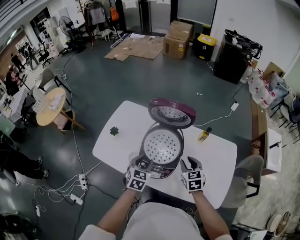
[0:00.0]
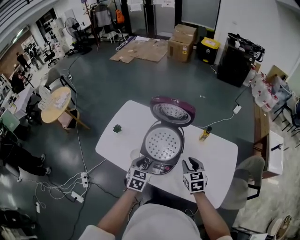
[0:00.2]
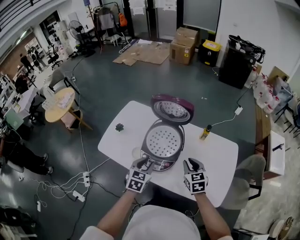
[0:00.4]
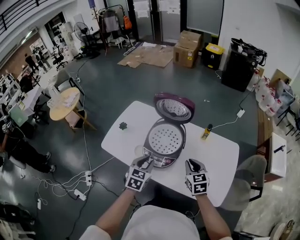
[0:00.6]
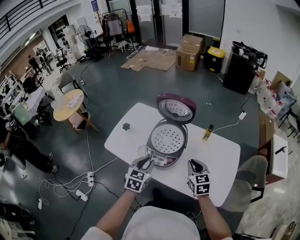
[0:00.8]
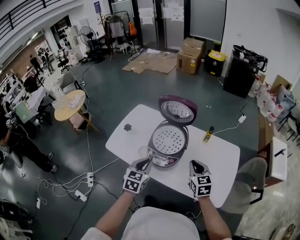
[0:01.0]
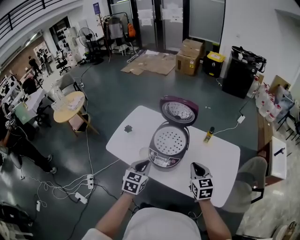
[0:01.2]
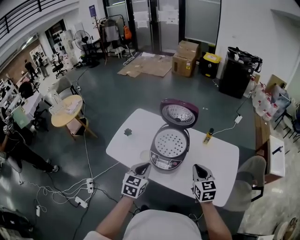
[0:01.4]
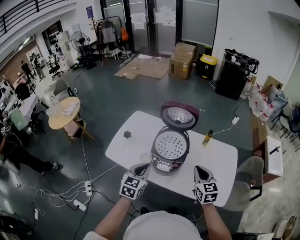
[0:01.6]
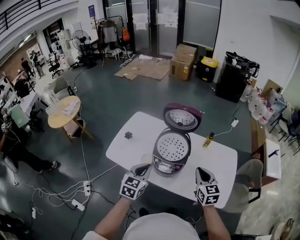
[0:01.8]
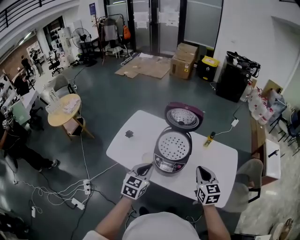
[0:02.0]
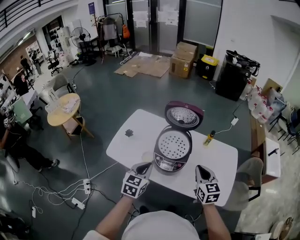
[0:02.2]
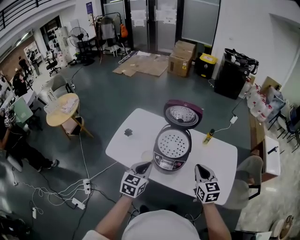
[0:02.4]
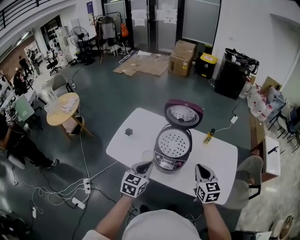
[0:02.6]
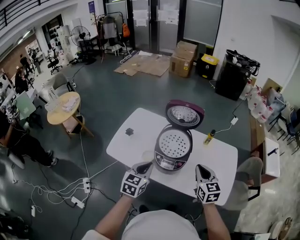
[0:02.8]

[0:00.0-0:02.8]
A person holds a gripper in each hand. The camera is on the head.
0:00.0 to 0:01.4: Both grippers move backward and upward, approximately 15 cm. The left gripper closes up, while the right gripper closes.
0:01.4 to 0:02.8: The grippers move only a little.

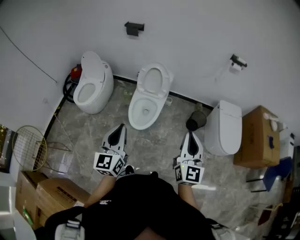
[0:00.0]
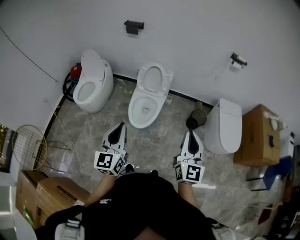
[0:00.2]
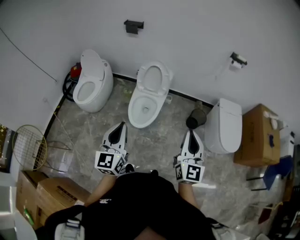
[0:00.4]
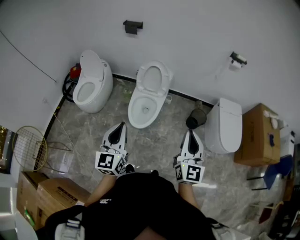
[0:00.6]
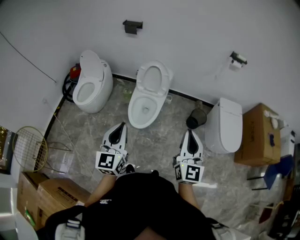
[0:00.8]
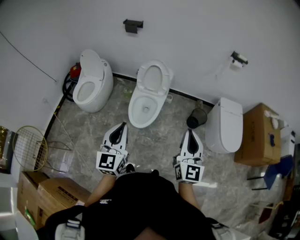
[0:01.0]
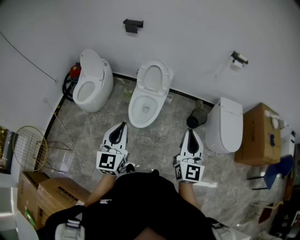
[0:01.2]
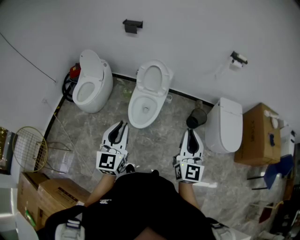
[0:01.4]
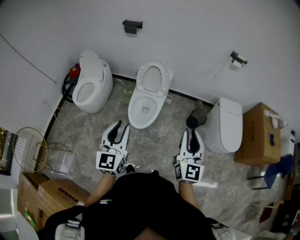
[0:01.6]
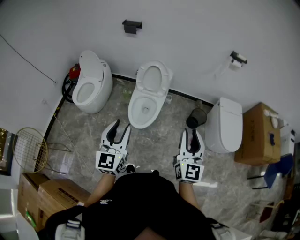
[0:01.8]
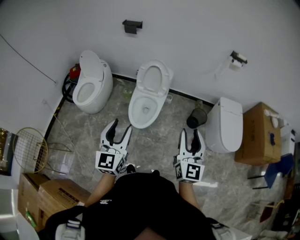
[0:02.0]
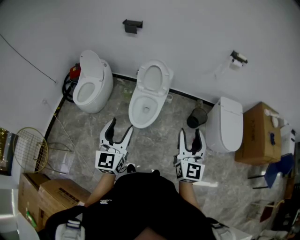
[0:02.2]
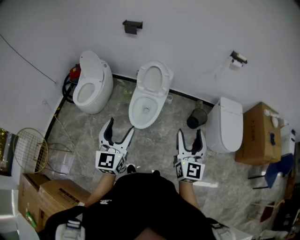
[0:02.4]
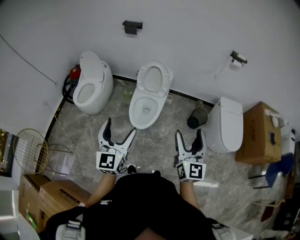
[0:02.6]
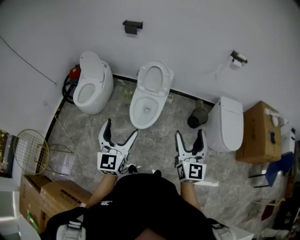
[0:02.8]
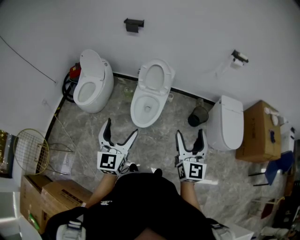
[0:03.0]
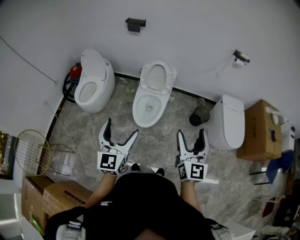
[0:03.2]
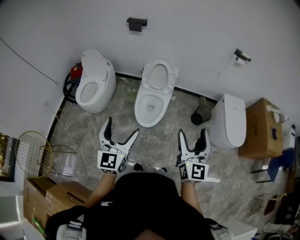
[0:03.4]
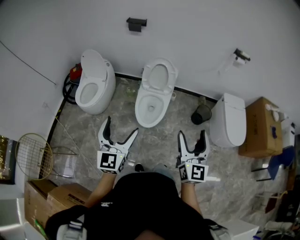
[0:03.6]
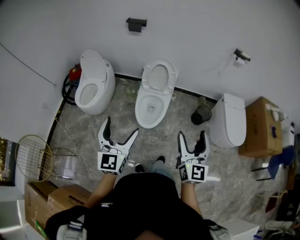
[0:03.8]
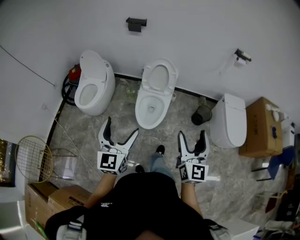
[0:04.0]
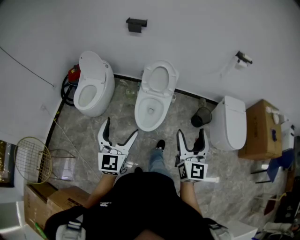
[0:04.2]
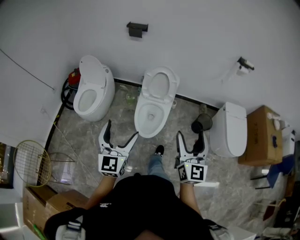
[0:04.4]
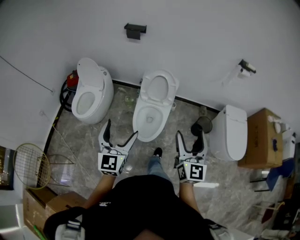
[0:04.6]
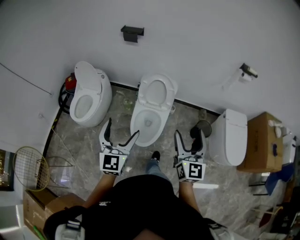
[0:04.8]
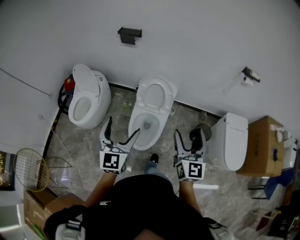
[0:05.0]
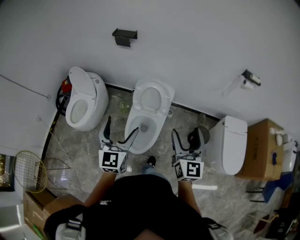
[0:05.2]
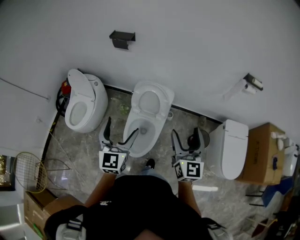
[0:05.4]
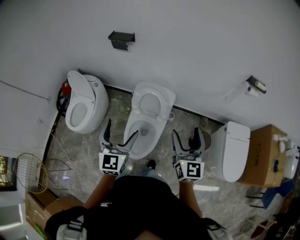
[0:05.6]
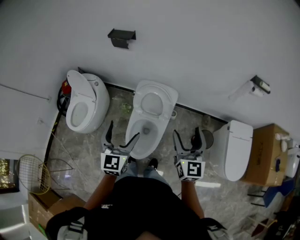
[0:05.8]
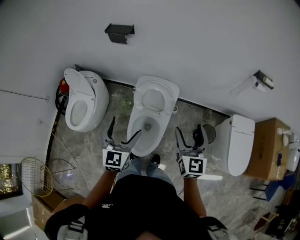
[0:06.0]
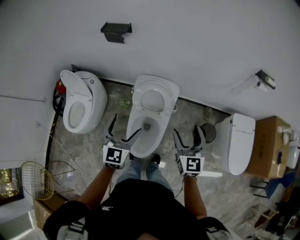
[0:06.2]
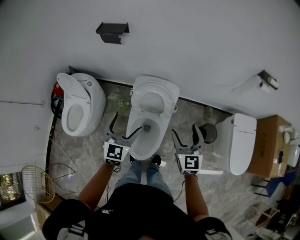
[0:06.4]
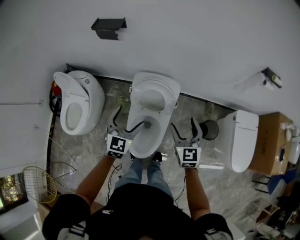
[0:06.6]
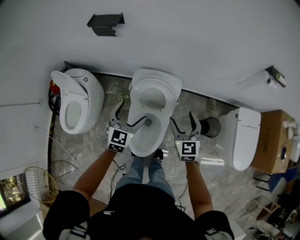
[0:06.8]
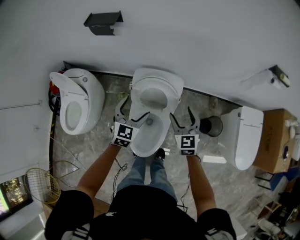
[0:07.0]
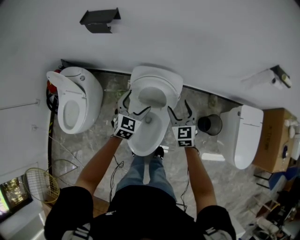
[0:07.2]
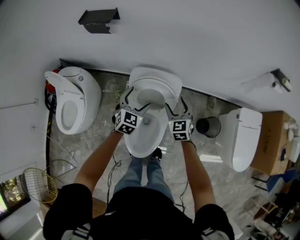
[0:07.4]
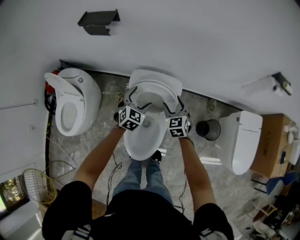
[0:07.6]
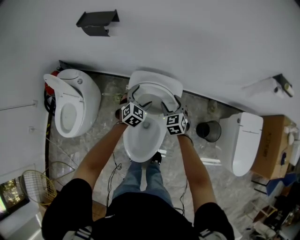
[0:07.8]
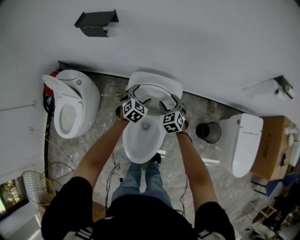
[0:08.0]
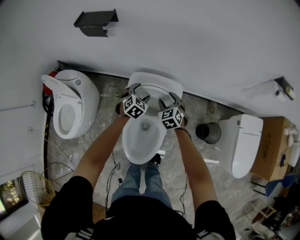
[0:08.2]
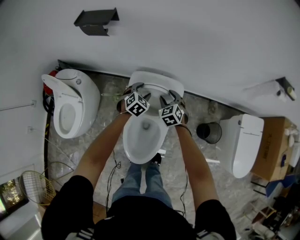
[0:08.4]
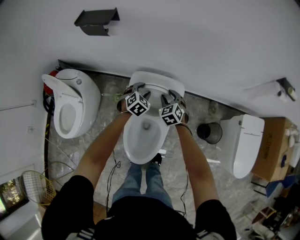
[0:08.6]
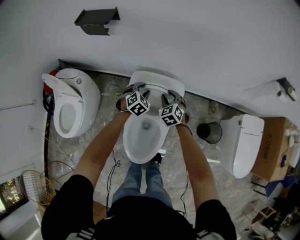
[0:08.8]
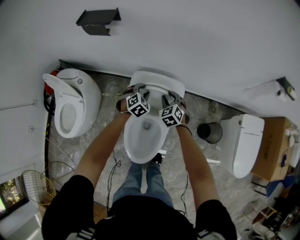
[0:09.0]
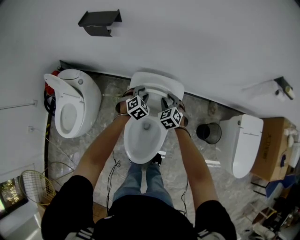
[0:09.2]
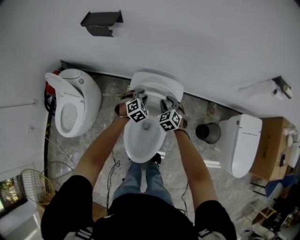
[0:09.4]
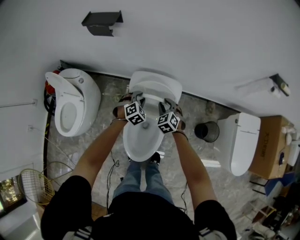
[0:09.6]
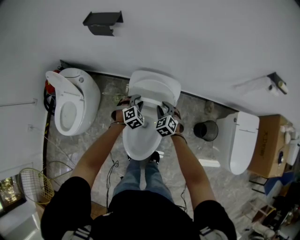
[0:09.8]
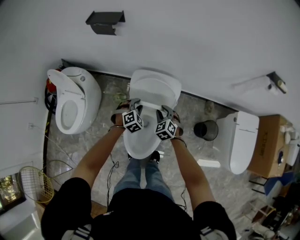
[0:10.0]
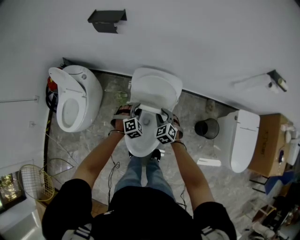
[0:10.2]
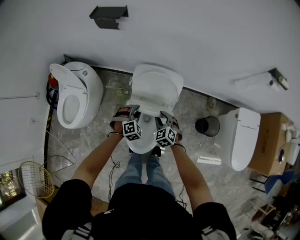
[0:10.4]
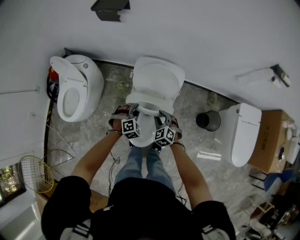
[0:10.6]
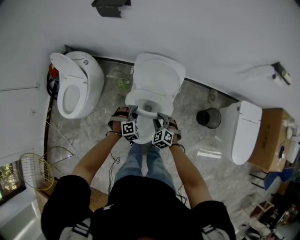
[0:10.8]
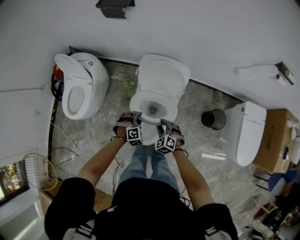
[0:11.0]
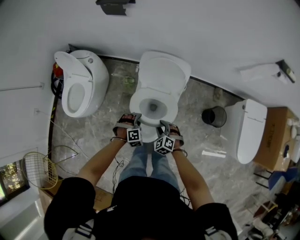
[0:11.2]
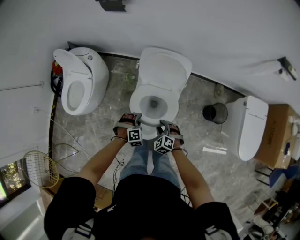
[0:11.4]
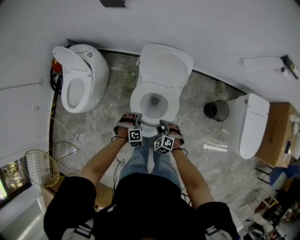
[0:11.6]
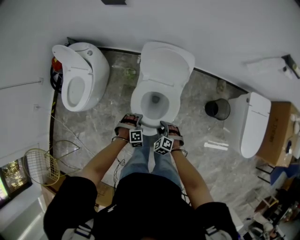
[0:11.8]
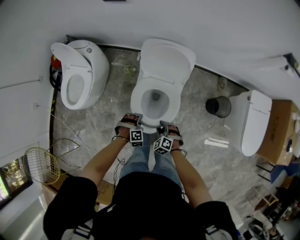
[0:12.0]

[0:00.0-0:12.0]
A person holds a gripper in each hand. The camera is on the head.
0:00.0 to 0:01.6: There are only small adjustments of the grippers.
0:01.6 to 0:03.0: The right gripper opens its fingers. Meanwhile the left gripper opens up.
0:03.0 to 0:04.4: Both grippers travel together forward and to the left, some 10 cm.
0:04.4 to 0:06.0: The grippers both shift forward by some 35 cm.
0:06.0 to 0:07.6: The left gripper shifts approximately 35 cm forward and downward, and turns by some 30 degrees; the right gripper shifts roughly 35 cm downward and forward, and turns by about 30 degrees.
0:07.6 to 0:09.0: Both grippers travel together downward and forward, some 10 cm. The left gripper closes its fingers, while the right gripper closes its fingers.
0:09.0 to 0:10.4: Both grippers move backward, approximately 20 cm.
0:10.4 to 0:12.0: Both grippers travel together backward and downward, about 25 cm. The left gripper turns by some 20 degrees, while the right gripper swivels approximately 20 degrees.

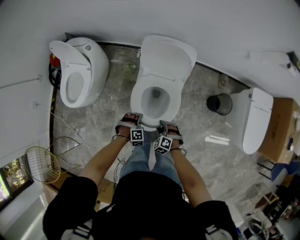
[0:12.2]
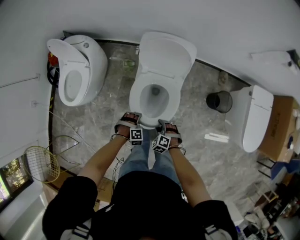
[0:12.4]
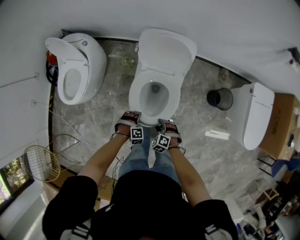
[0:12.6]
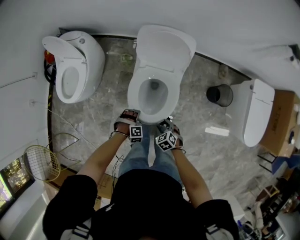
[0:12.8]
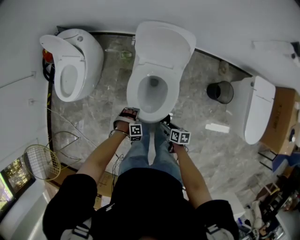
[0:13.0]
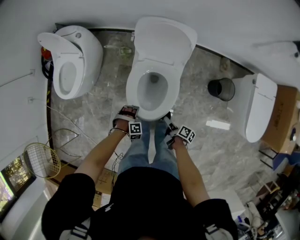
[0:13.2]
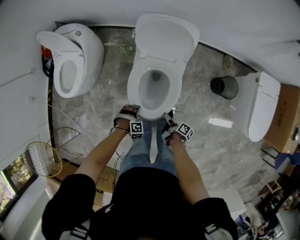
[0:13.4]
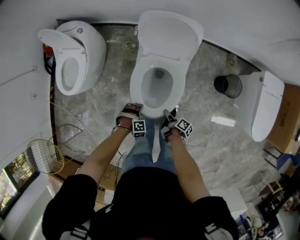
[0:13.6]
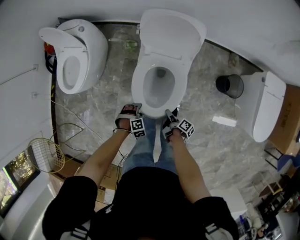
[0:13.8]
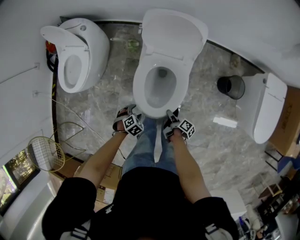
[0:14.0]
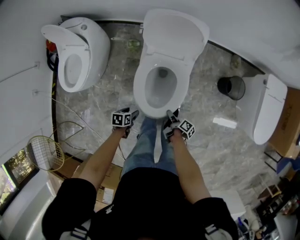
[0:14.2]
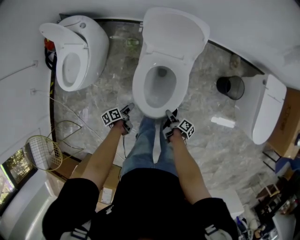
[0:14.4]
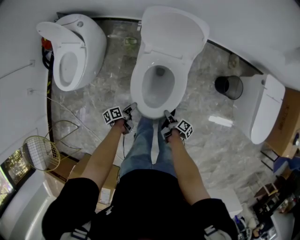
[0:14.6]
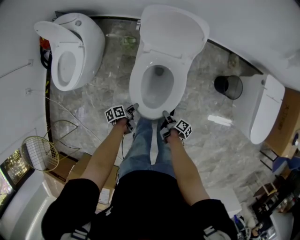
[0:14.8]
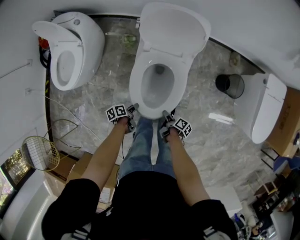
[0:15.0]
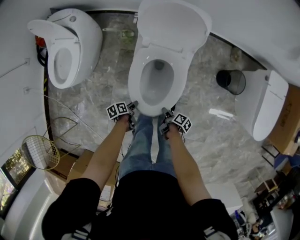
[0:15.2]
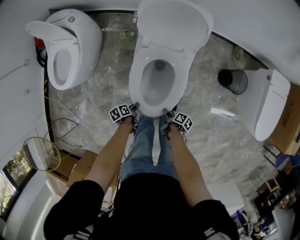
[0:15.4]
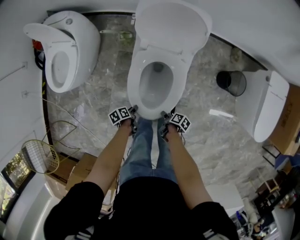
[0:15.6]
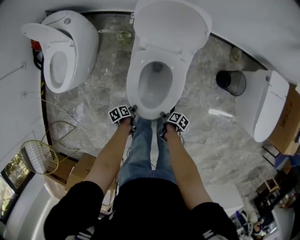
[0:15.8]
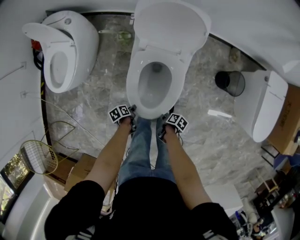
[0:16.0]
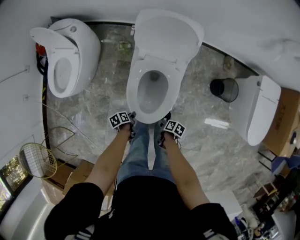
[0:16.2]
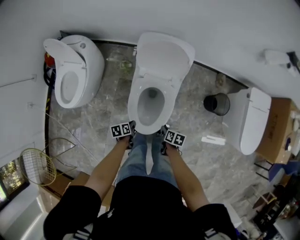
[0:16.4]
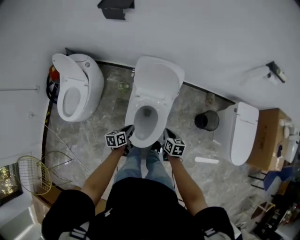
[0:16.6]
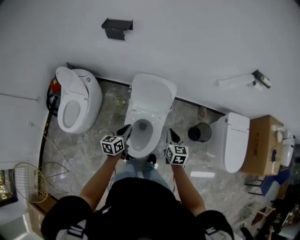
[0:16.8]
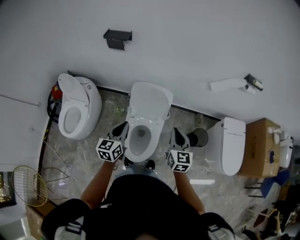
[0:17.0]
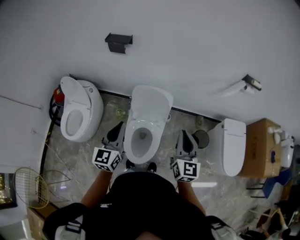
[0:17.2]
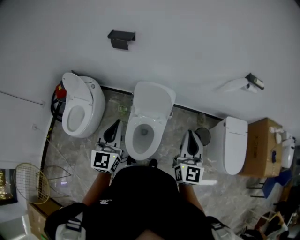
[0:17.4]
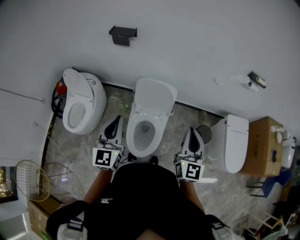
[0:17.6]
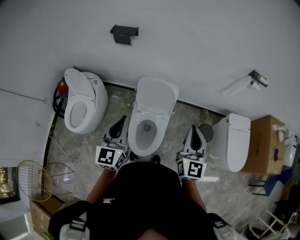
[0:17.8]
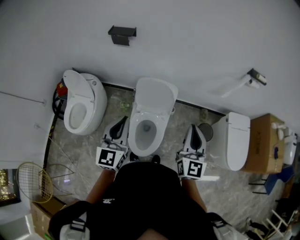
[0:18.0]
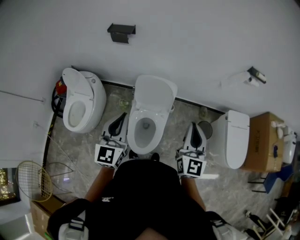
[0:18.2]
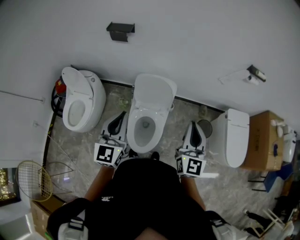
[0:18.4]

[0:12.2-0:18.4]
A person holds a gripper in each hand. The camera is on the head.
0:12.2 to 0:13.8: The left gripper shifts by some 10 cm. The right gripper shifts some 10 cm downward, and rotates around the line of its fingers by some 140 degrees, clockwise from behind.
0:13.8 to 0:15.4: The two grippers go roughly 10 cm downward. The right gripper turns by about 20 degrees. The left gripper rotates around the line of its fingers by about 130 degrees, counterclockwise from behind.
0:15.4 to 0:16.8: The left gripper heads upward, covering about 40 cm, and points its fingers approximately 40 degrees further upward. The right gripper shifts some 50 cm upward and forward, rotates around the line of its fingers by roughly 70 degrees, counterclockwise from behind, and closes.
0:16.8 to 0:18.4: Both grippers move upward, roughly 30 cm. The right gripper angles its fingers upward, by approximately 30 degrees. Meanwhile the left gripper swivels some 40 degrees.

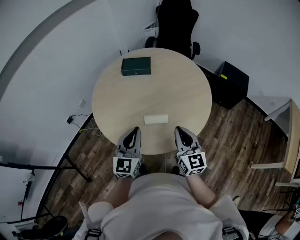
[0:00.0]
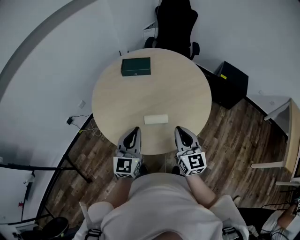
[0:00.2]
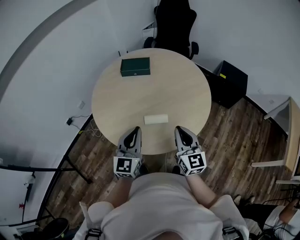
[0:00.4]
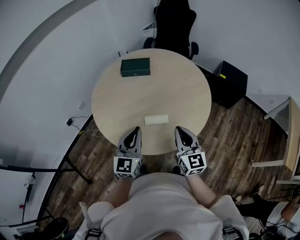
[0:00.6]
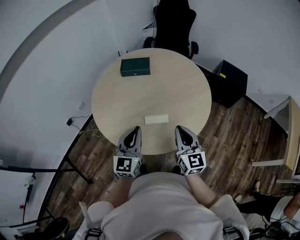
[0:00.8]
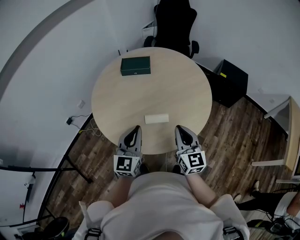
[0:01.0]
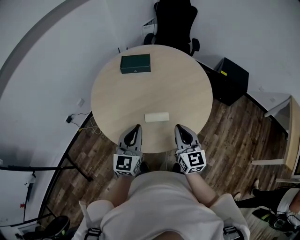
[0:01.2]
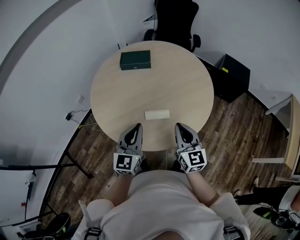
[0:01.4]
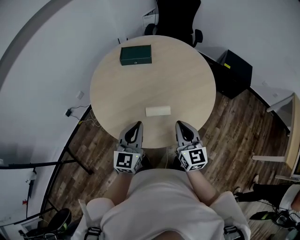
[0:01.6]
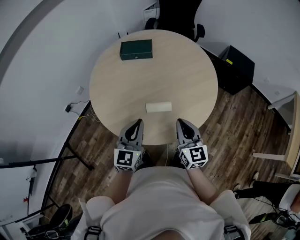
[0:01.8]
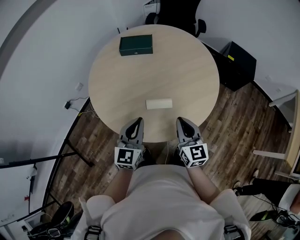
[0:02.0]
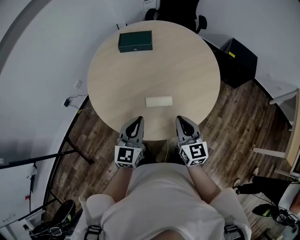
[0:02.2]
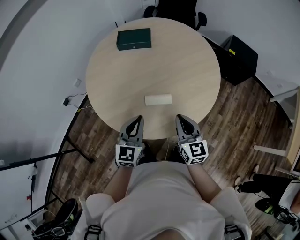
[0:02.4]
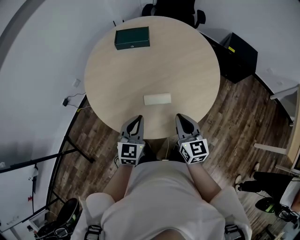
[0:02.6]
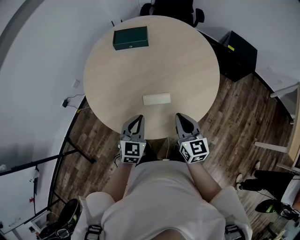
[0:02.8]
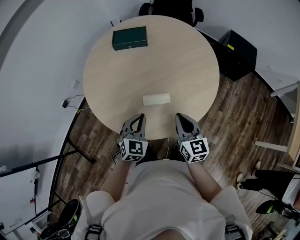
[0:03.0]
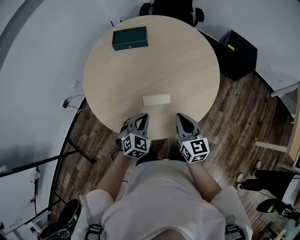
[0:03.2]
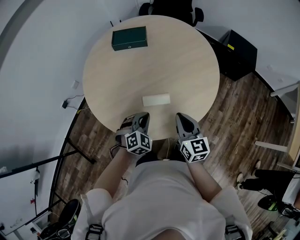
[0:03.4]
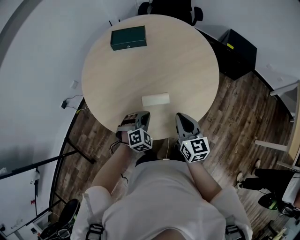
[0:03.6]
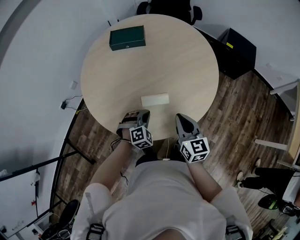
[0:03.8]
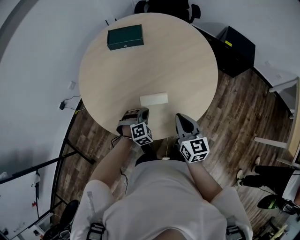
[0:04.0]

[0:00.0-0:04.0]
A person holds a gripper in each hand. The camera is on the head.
0:00.0 to 0:01.4: The grippers make only small movements.
0:01.4 to 0:02.6: The two grippers go roughly 10 cm downward.
0:02.6 to 0:04.0: The left gripper heads downward, covering roughly 15 cm, and twists about 50 degrees clockwise, seen from behind.
